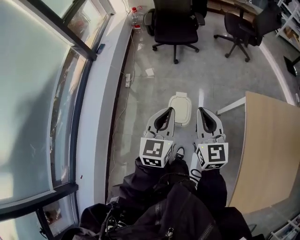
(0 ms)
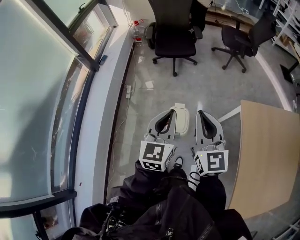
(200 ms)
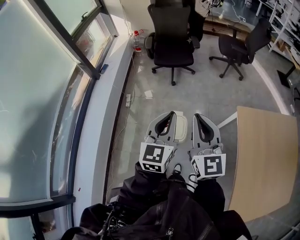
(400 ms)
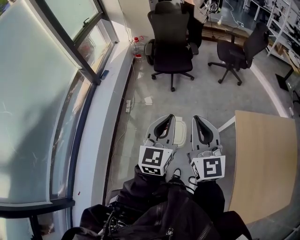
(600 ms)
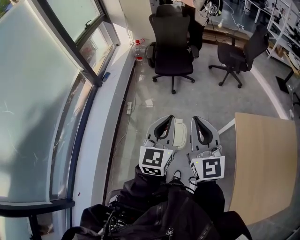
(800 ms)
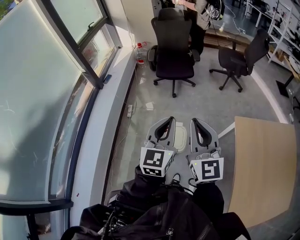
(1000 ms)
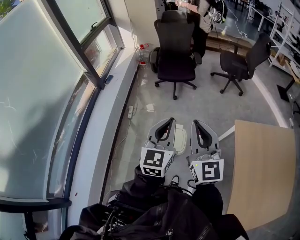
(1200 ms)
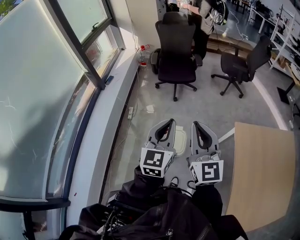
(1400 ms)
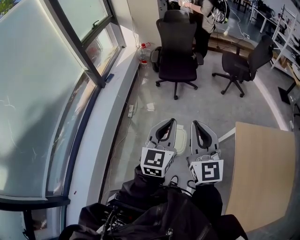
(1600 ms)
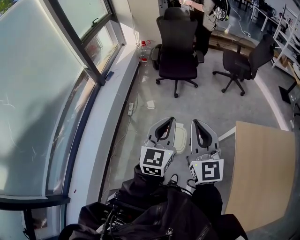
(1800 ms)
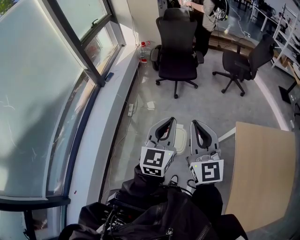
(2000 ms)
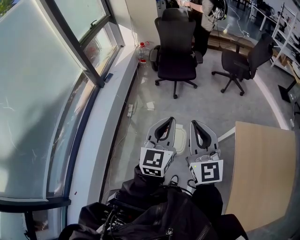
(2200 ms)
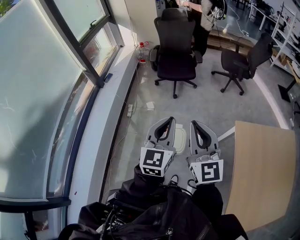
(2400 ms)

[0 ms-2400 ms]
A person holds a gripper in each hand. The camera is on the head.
0 ms to 1200 ms: The two grippers go about 15 cm upward.
1200 ms to 2400 ms: The grippers move only a little.

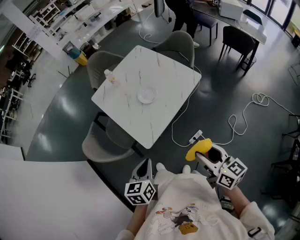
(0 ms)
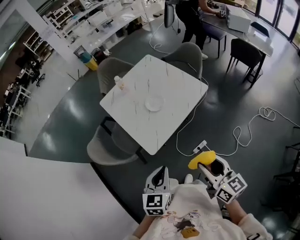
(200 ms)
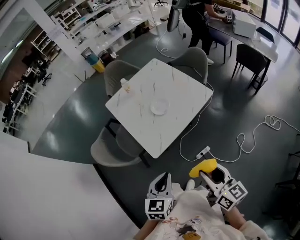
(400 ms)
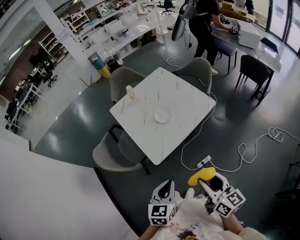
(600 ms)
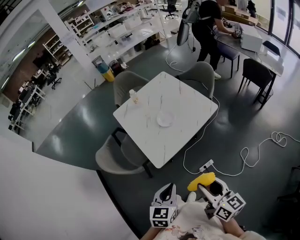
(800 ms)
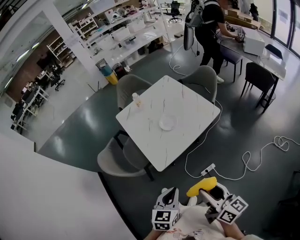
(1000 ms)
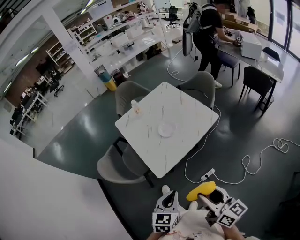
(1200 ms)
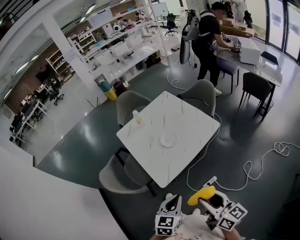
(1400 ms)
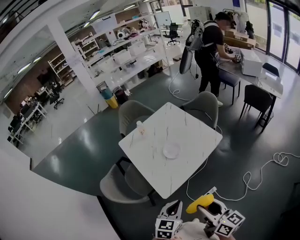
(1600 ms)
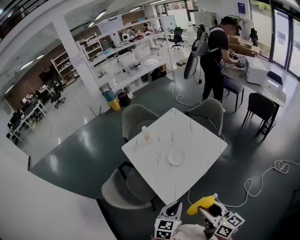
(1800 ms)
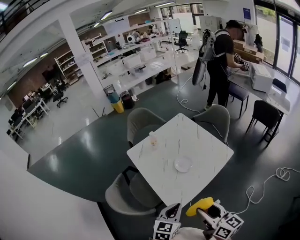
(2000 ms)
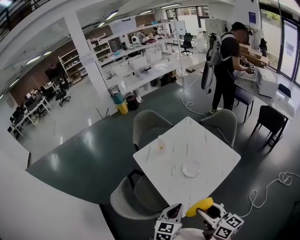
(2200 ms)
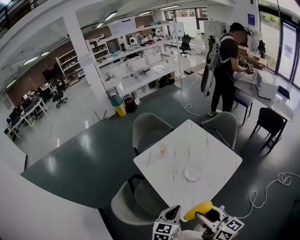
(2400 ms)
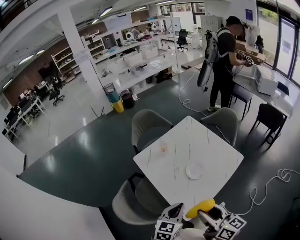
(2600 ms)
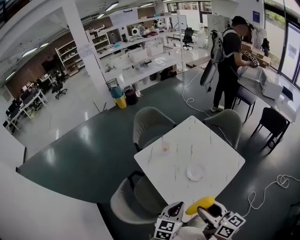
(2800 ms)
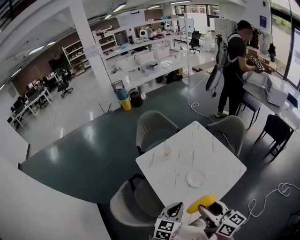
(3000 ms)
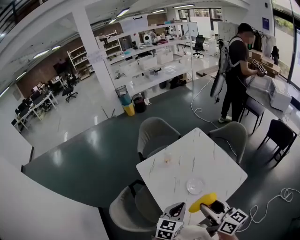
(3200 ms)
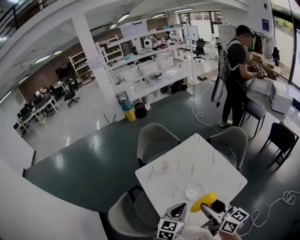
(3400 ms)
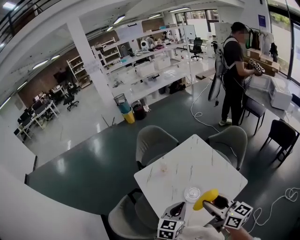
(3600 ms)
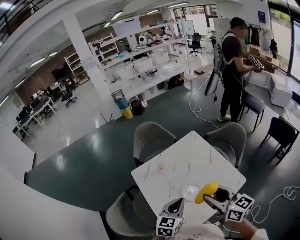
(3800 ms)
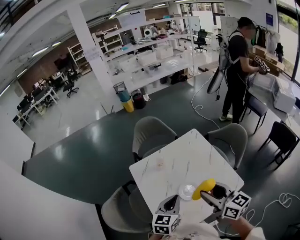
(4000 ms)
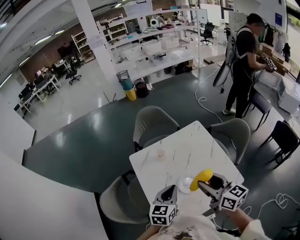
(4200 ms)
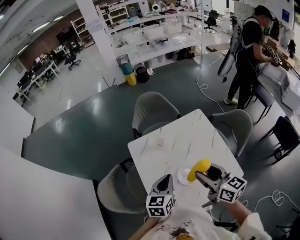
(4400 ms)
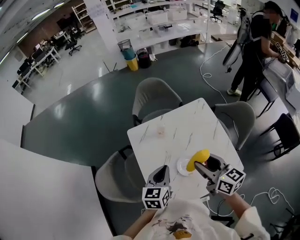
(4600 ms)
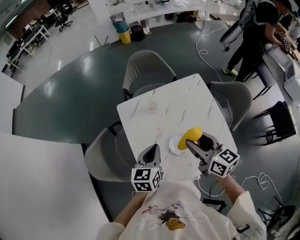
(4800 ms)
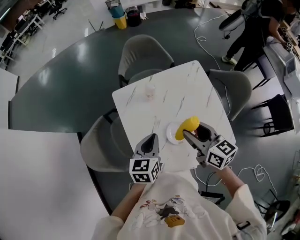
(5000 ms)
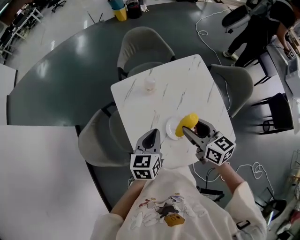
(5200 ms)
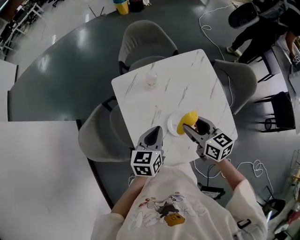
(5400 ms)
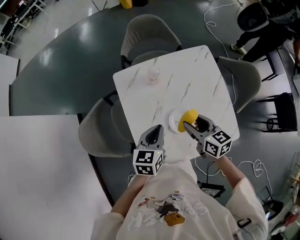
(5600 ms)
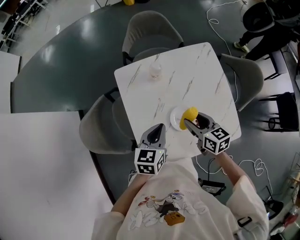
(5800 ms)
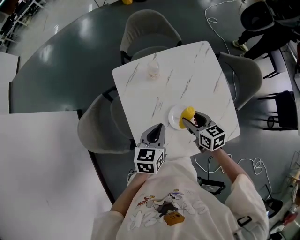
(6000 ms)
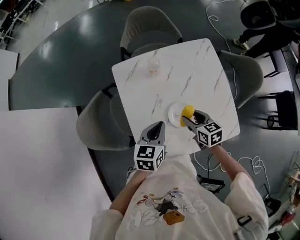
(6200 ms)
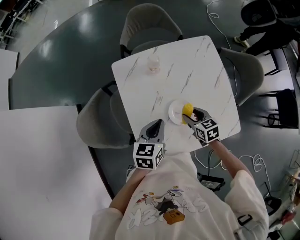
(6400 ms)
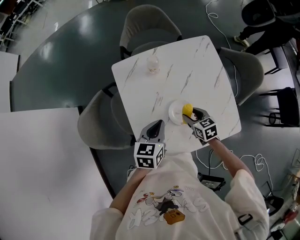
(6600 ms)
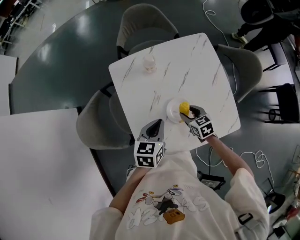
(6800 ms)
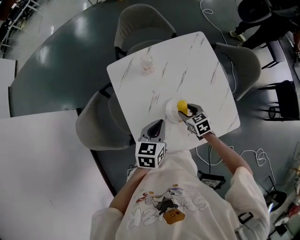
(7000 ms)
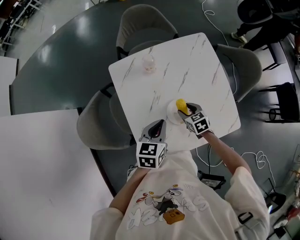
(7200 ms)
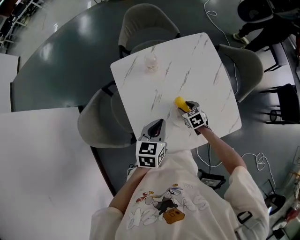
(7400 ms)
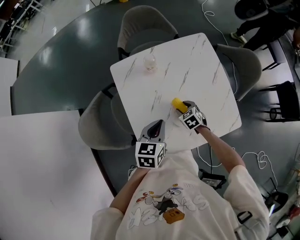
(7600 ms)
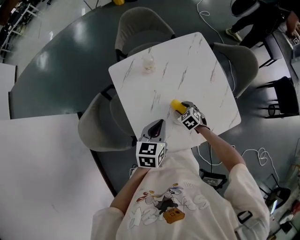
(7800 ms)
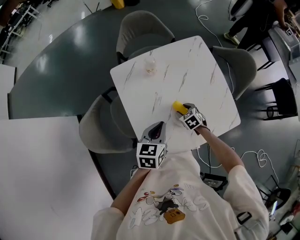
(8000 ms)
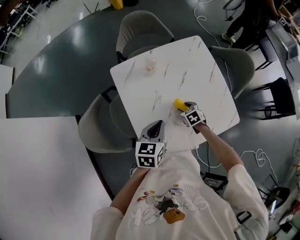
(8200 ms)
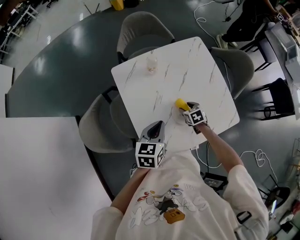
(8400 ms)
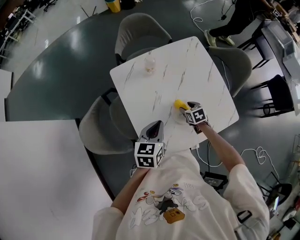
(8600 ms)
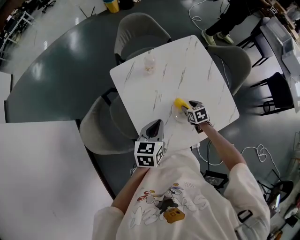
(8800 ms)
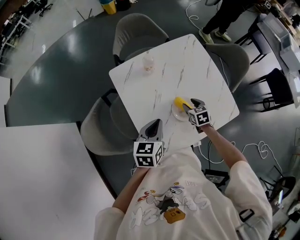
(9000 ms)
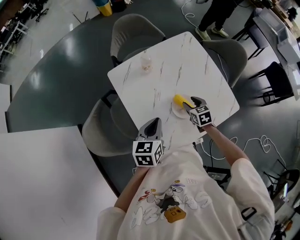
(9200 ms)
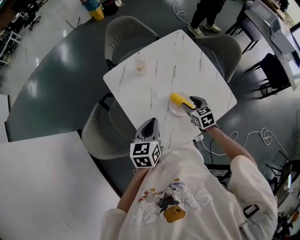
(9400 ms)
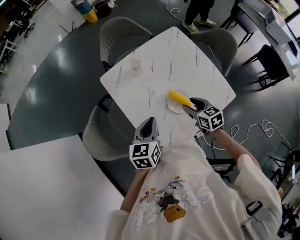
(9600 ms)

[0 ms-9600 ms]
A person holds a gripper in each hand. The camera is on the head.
0 ms to 1600 ms: The right gripper heads to the left, covering approximately 5 cm. Meanwhile the left gripper goes approximately 5 cm to the right, and reaches roughly 10 cm backward, then returns.
1600 ms to 3200 ms: The two grippers go roughly 30 cm forward and to the left.
3200 ms to 4800 ms: The two grippers go some 15 cm forward. The right gripper turns by roughly 20 degrees. Meanwhile the left gripper swivels approximately 30 degrees.
4800 ms to 6400 ms: The left gripper goes about 10 cm downward. The right gripper is displaced downward by some 25 cm, and turns by about 30 degrees.
6400 ms to 8000 ms: The right gripper shifts about 10 cm downward, and rotates approximately 20 degrees.
8000 ms to 9600 ms: The left gripper shifts by about 5 cm; the right gripper is displaced upward by some 15 cm, and changes its angle by approximately 30 degrees.

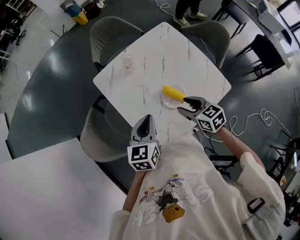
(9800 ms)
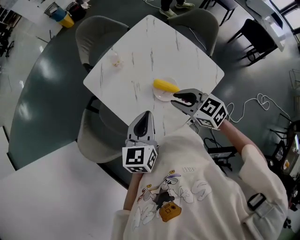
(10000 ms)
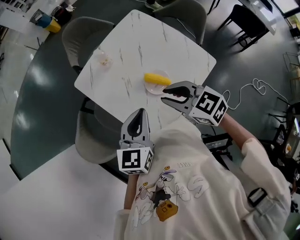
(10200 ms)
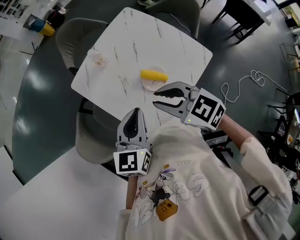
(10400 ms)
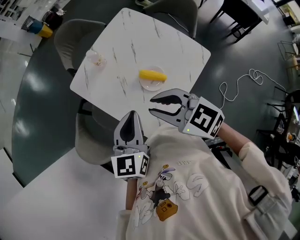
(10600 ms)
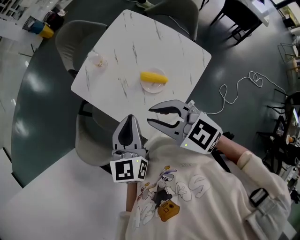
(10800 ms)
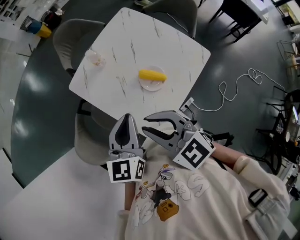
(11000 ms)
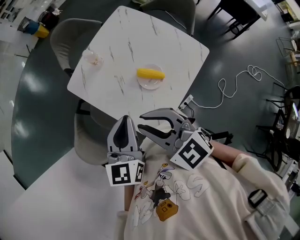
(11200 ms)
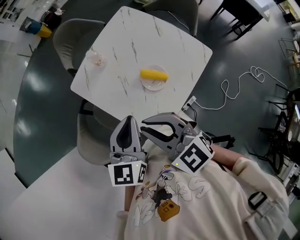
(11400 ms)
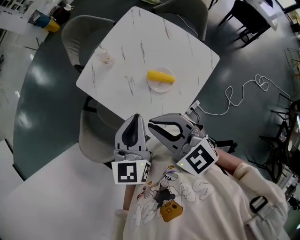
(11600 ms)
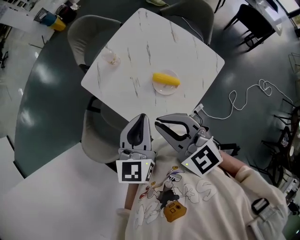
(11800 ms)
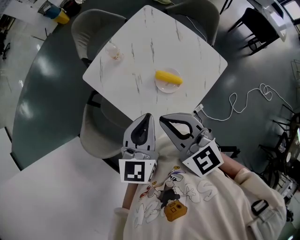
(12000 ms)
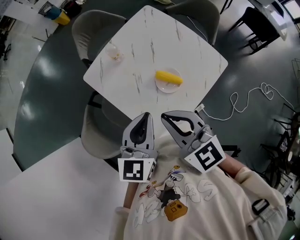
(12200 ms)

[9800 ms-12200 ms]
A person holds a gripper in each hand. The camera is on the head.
9800 ms to 11000 ms: The right gripper shifts about 20 cm upward and to the left, changes its angle by some 20 degrees, and closes up; the left gripper moves upward, some 10 cm.
11000 ms to 12200 ms: The right gripper closes its fingers.

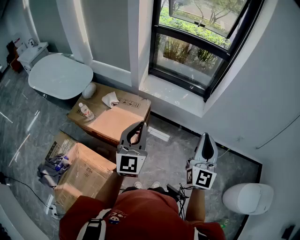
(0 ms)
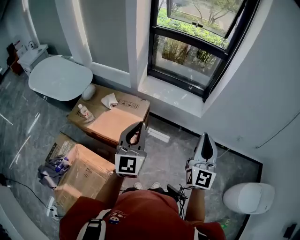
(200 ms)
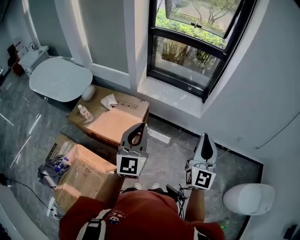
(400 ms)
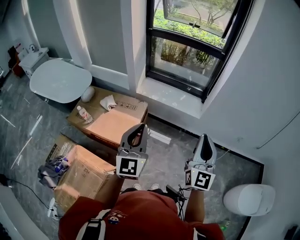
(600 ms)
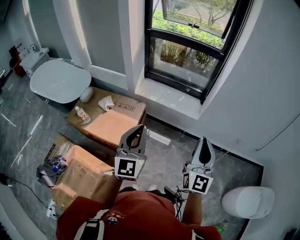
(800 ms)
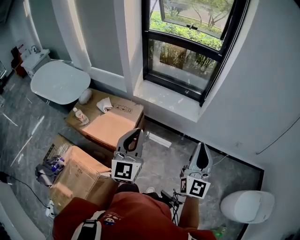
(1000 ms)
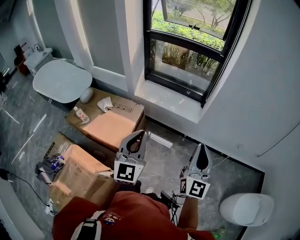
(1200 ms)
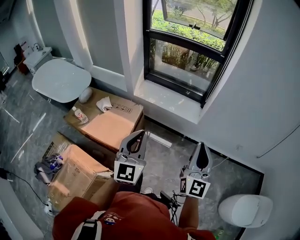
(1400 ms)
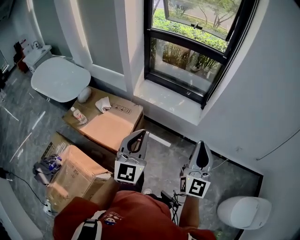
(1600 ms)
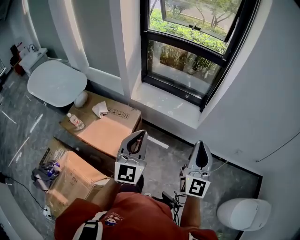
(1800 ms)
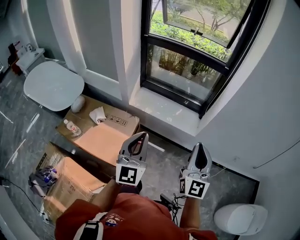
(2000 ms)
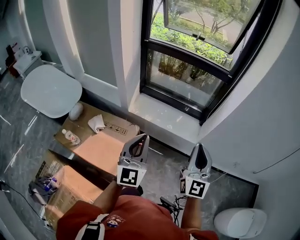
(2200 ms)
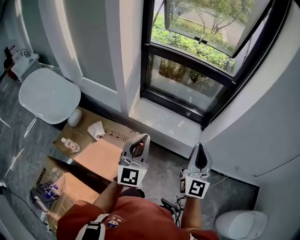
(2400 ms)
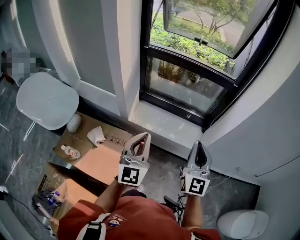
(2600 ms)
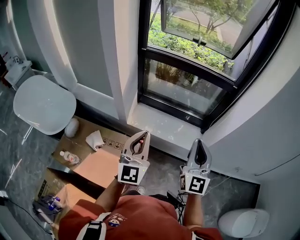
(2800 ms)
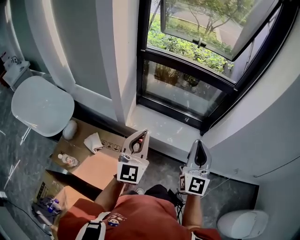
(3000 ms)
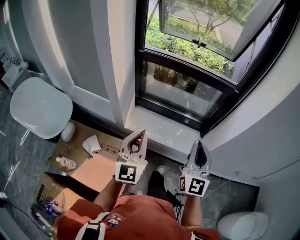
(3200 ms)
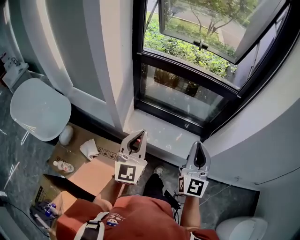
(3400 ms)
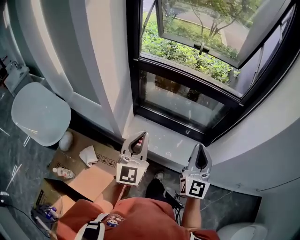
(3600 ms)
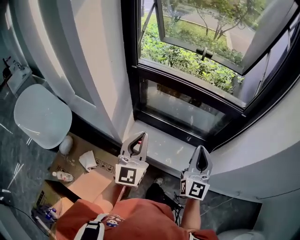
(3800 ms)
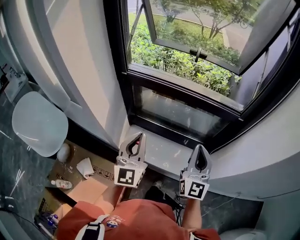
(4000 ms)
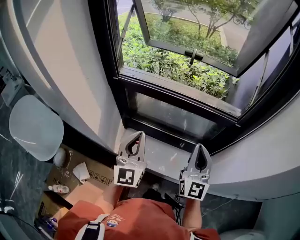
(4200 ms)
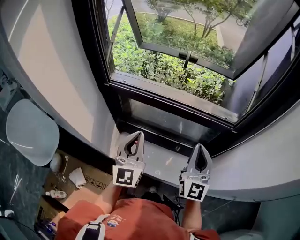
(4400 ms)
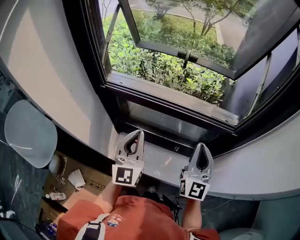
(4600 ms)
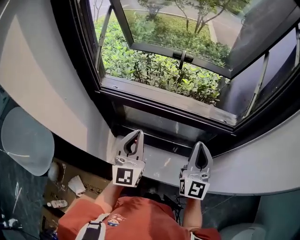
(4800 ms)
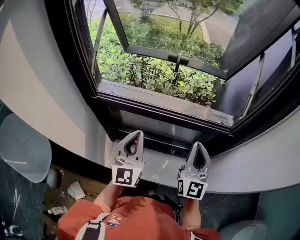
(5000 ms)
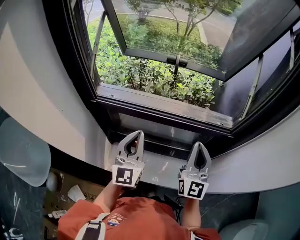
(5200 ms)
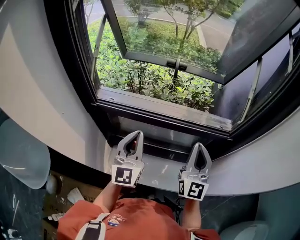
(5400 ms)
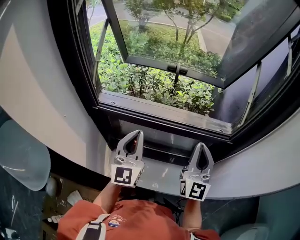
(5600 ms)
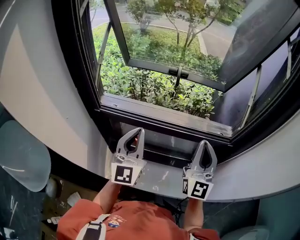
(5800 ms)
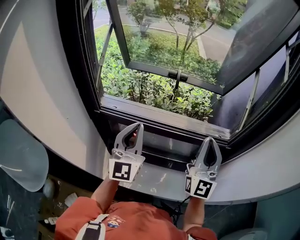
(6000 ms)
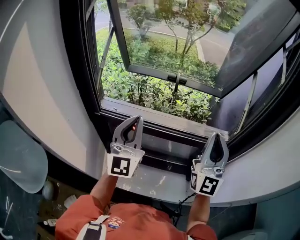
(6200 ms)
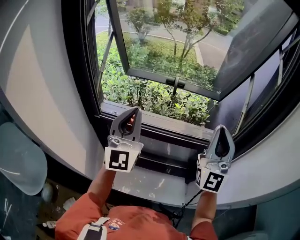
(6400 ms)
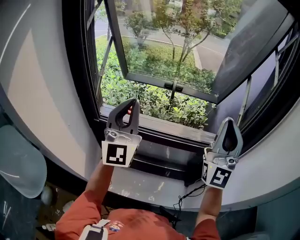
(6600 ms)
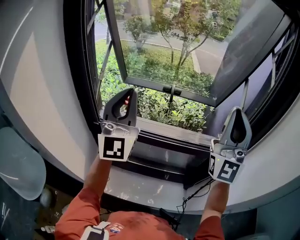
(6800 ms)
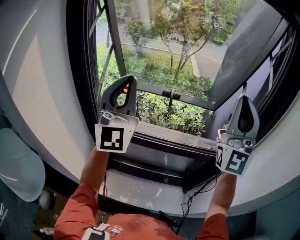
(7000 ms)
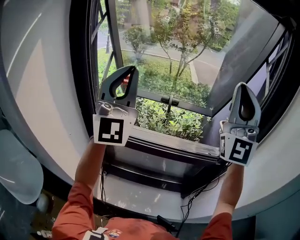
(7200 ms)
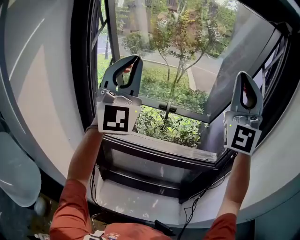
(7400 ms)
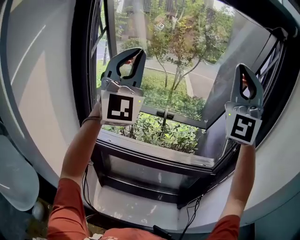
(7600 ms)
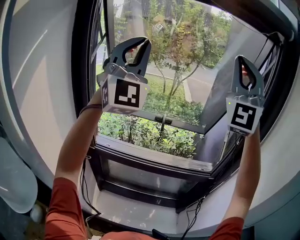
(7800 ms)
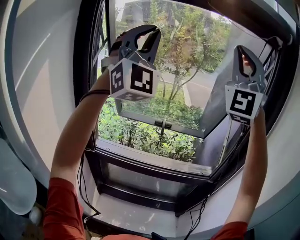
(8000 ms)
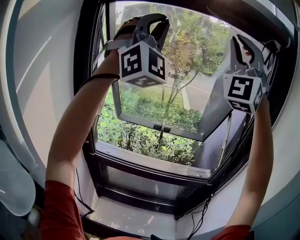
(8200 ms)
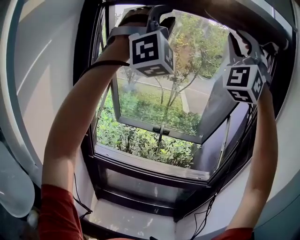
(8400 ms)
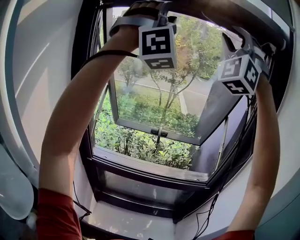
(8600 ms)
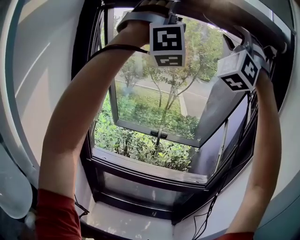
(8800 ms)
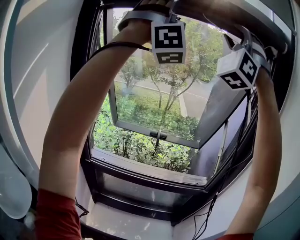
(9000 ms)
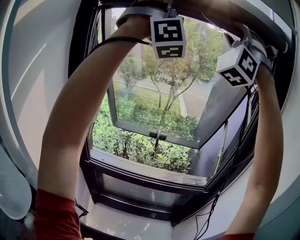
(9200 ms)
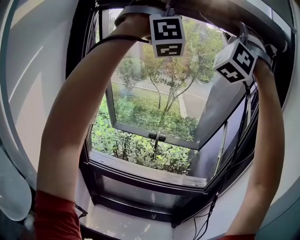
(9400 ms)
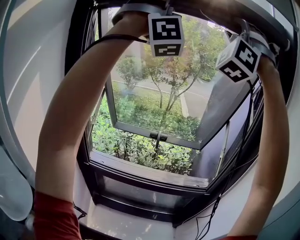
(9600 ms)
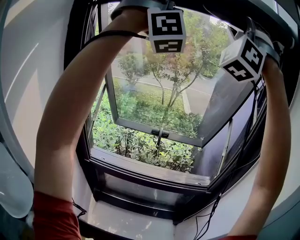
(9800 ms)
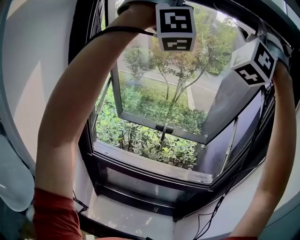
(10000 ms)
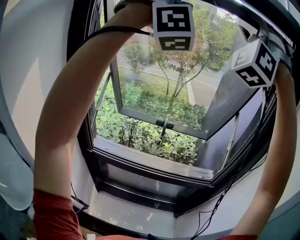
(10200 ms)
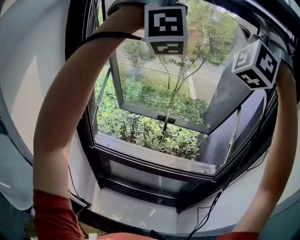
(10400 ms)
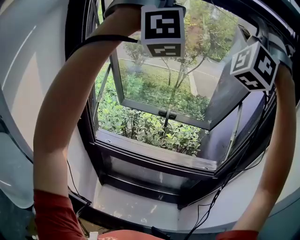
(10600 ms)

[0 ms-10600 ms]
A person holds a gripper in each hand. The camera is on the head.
0 ms to 1600 ms: The right gripper goes about 10 cm to the right and forward, while the left gripper is displaced to the right by approximately 10 cm.
1600 ms to 3000 ms: The right gripper moves forward and to the left, about 30 cm. The left gripper moves forward, about 30 cm.
3000 ms to 4600 ms: The grippers both shift forward by about 35 cm.
4600 ms to 6000 ms: The left gripper travels forward and upward by about 10 cm; the right gripper is displaced upward by roughly 10 cm.
6000 ms to 7600 ms: Both grippers travel together upward, roughly 35 cm. The right gripper rotates around the line of its fingers by roughly 40 degrees, counterclockwise from behind. Meanwhile the left gripper swivels approximately 40 degrees.
7600 ms to 9000 ms: Both grippers travel together upward, roughly 20 cm. The left gripper rolls clockwise, seen from behind, by about 50 degrees, and opens up, while the right gripper turns by about 40 degrees, and opens its fingers.
9000 ms to 10600 ms: Both grippers travel together downward, about 5 cm.
